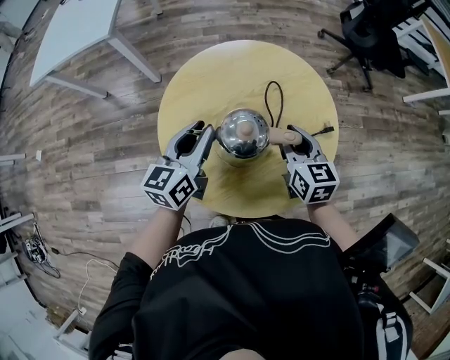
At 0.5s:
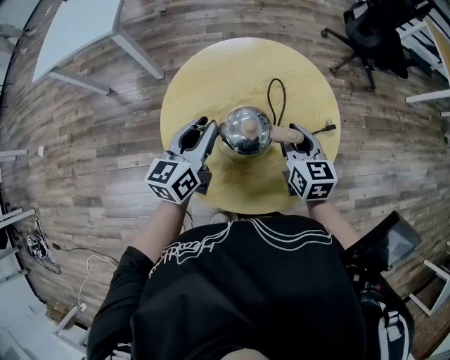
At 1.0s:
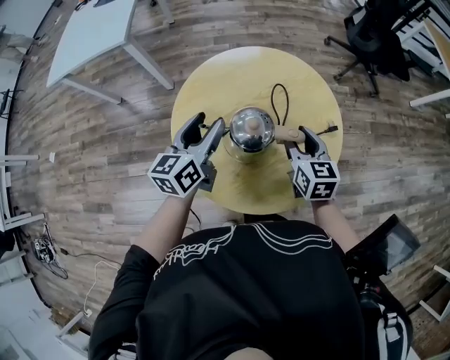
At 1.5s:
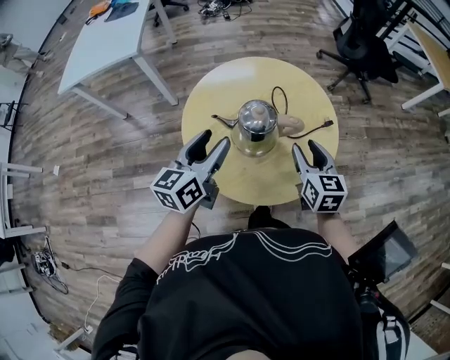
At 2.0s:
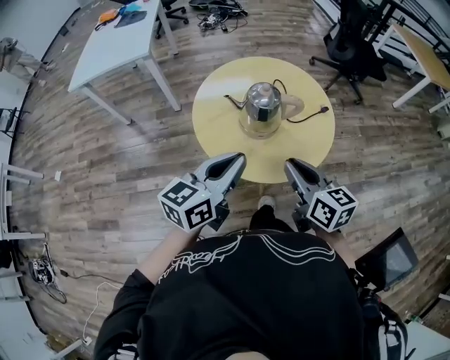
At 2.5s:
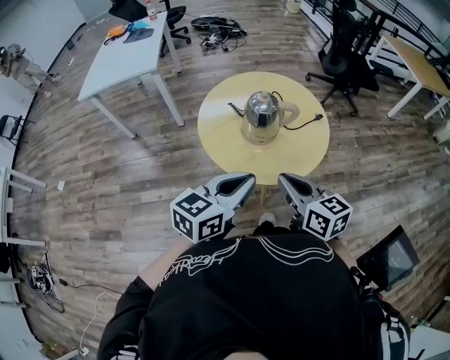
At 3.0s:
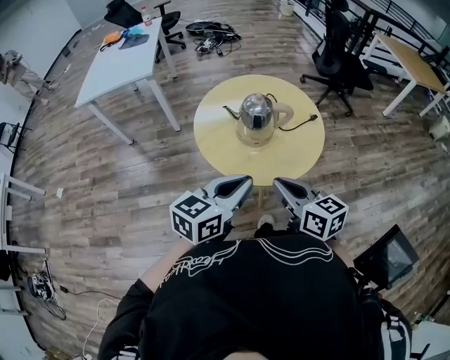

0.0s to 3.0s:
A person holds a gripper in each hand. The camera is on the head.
0.0s to 1.5s: The grippers both shift backward and upward by about 10 cm. The left gripper opens its fingers.
1.5s to 3.0s: The two grippers go approximately 25 cm backward. The right gripper swivels roughly 30 degrees, and closes its fingers; the left gripper changes its angle by approximately 20 degrees, and closes.

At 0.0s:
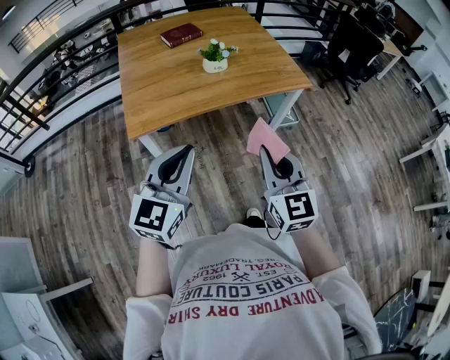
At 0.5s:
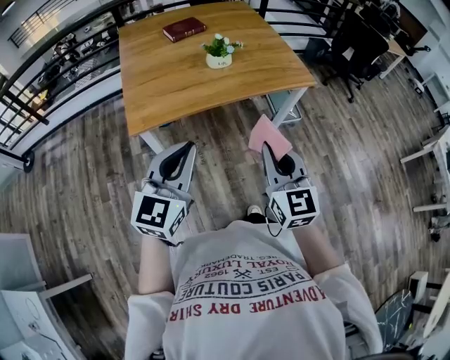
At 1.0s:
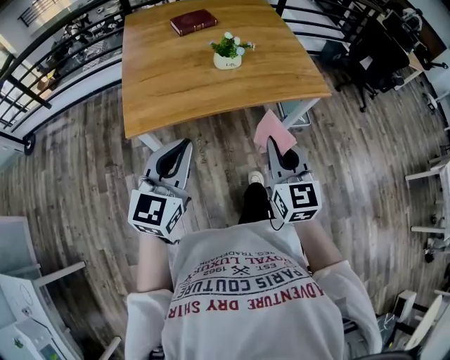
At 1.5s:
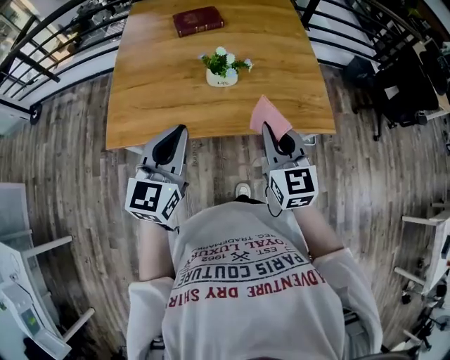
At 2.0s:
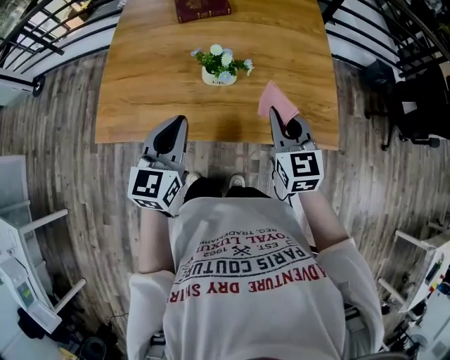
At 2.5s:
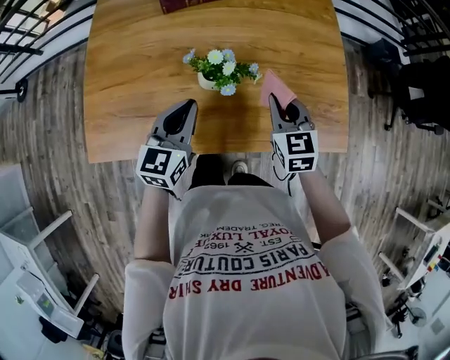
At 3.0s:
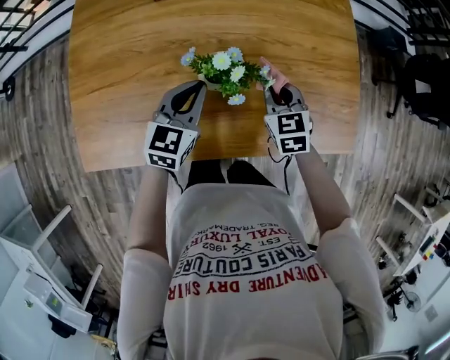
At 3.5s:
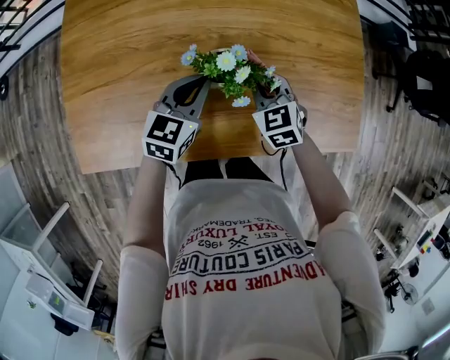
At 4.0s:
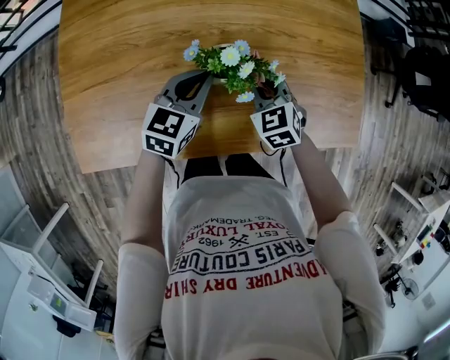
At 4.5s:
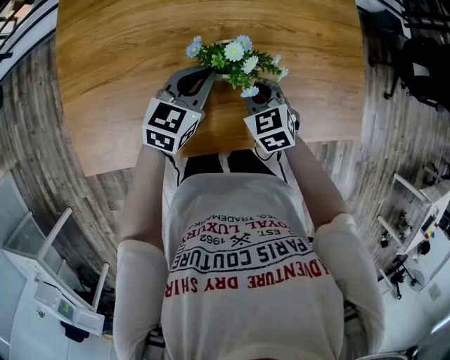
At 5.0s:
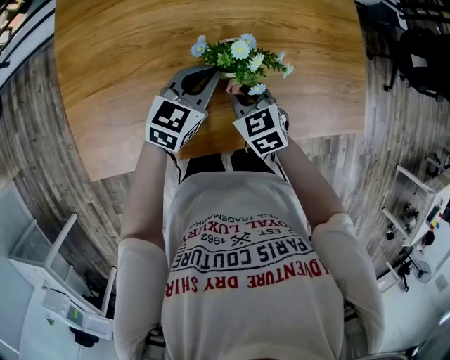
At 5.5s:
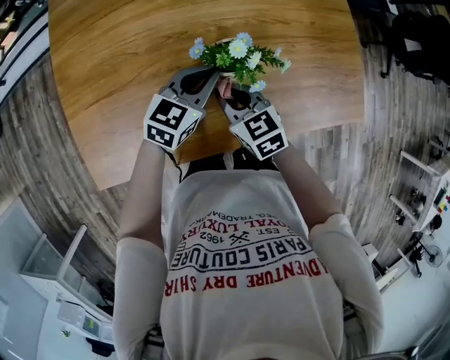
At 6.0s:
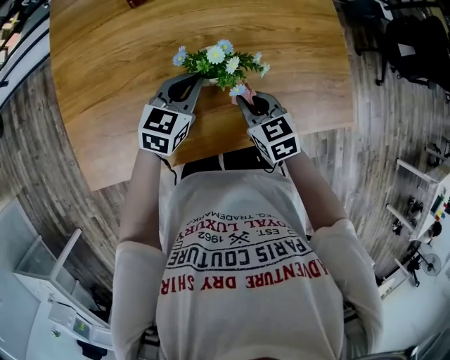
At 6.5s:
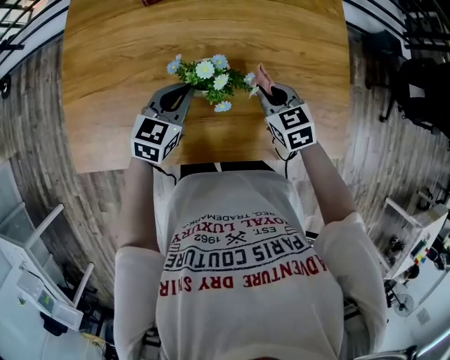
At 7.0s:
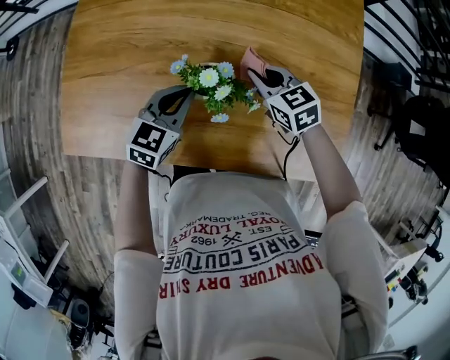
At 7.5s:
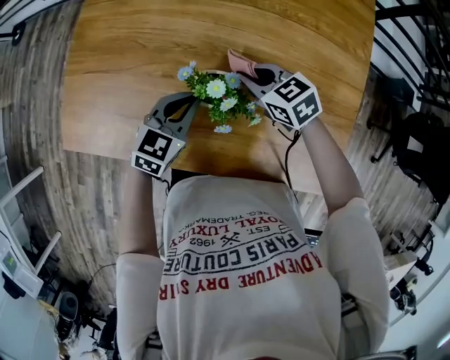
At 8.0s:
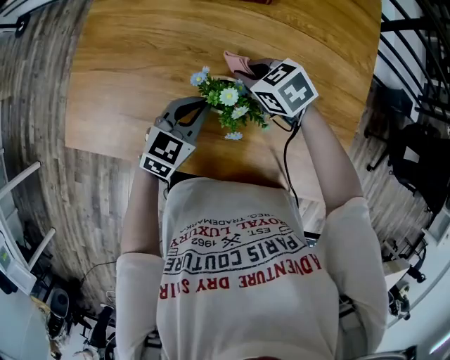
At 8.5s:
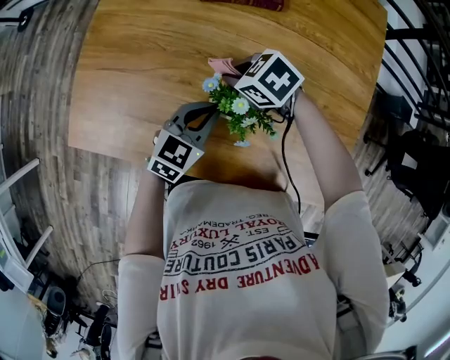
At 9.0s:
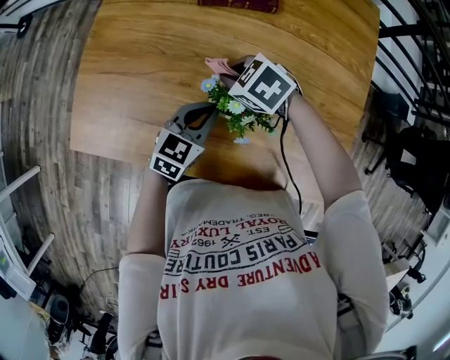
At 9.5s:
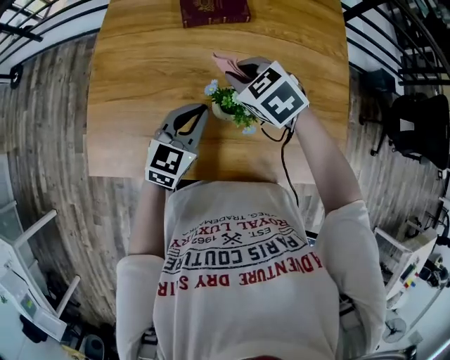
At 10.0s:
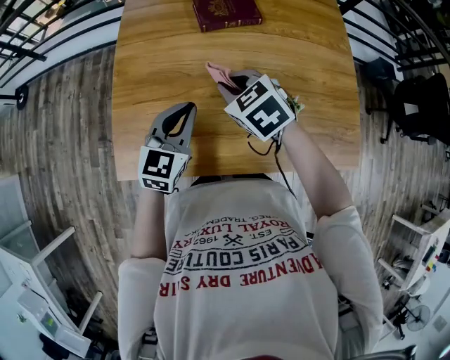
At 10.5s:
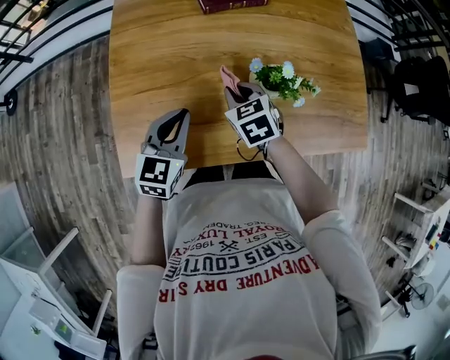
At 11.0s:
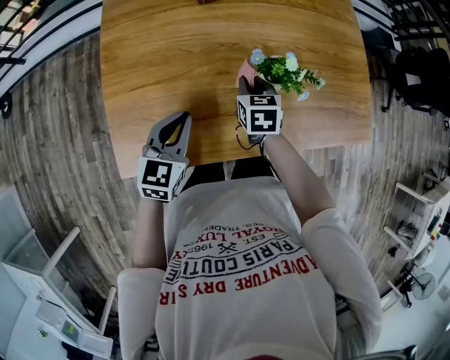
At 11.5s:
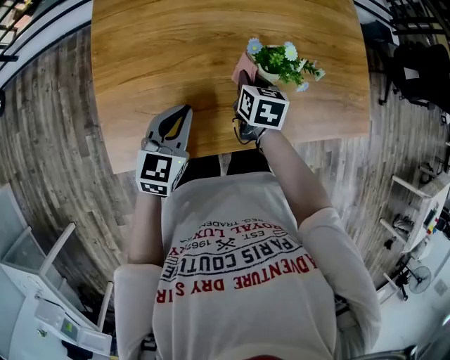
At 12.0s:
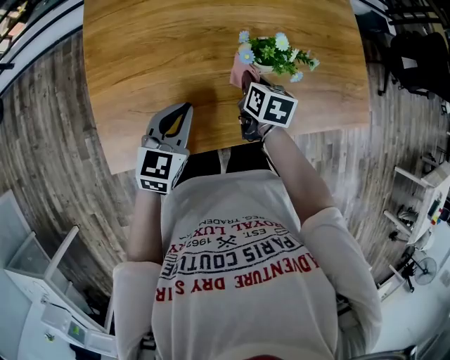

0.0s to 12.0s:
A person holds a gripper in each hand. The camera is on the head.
0.0s to 2.0s: The grippers both shift forward by approximately 40 cm. The left gripper swivels roughly 30 degrees. Meanwhile the right gripper swivels about 20 degrees.
2.0s to 4.0s: The left gripper goes approximately 25 cm forward and downward, and rotates about 30 degrees. The right gripper heads downward, forward and to the left, covering approximately 25 cm, and changes its angle by approximately 30 degrees.
4.0s to 6.0s: The right gripper heads backward, covering approximately 5 cm, and reaches roughly 10 cm to the left, then returns.
6.0s to 8.0s: The right gripper ends up some 15 cm from where it was, and rotates about 50 degrees.
8.0s to 10.0s: The right gripper changes place by approximately 20 cm, and swivels approximately 30 degrees. The left gripper shifts by approximately 20 cm.
10.0s to 12.0s: The left gripper heads downward, covering some 10 cm. The right gripper goes some 15 cm downward, and rotates around the line of its fingers by approximately 60 degrees, clockwise from behind.

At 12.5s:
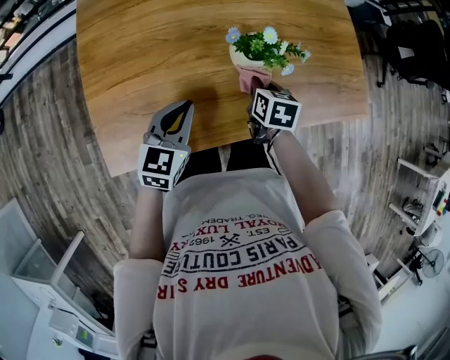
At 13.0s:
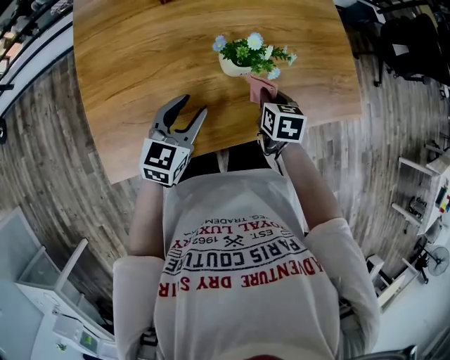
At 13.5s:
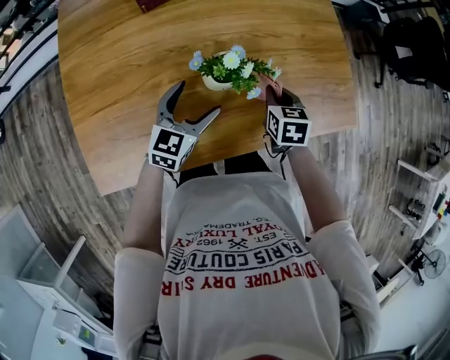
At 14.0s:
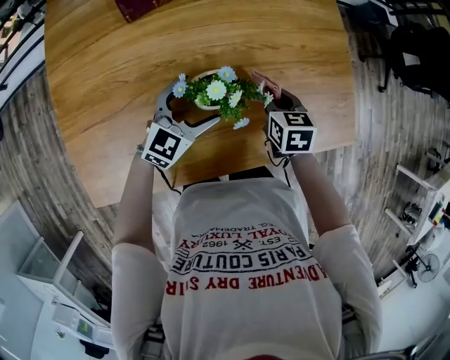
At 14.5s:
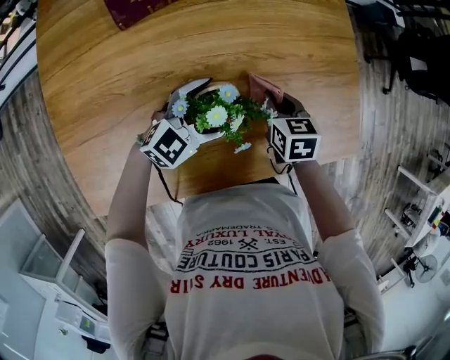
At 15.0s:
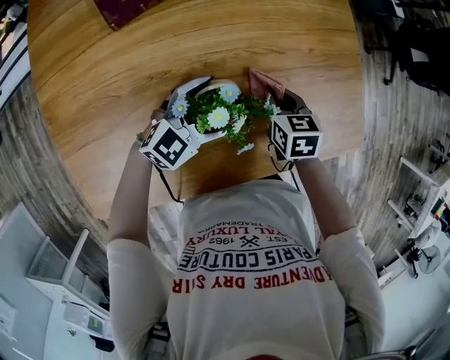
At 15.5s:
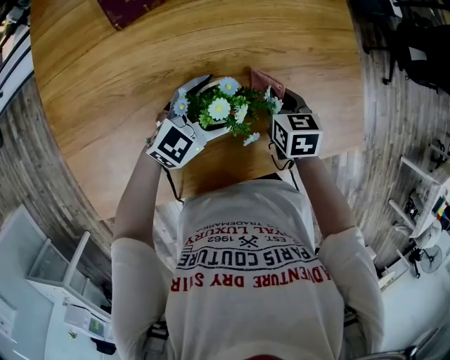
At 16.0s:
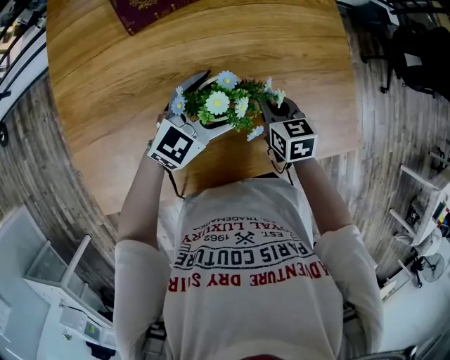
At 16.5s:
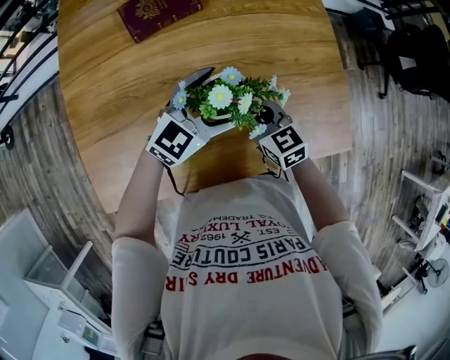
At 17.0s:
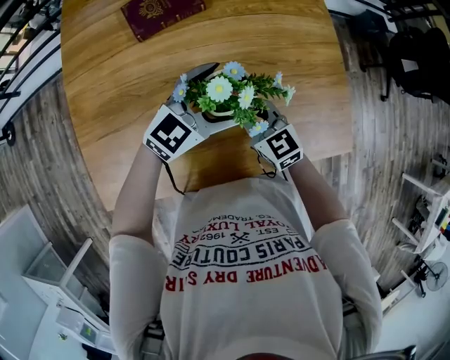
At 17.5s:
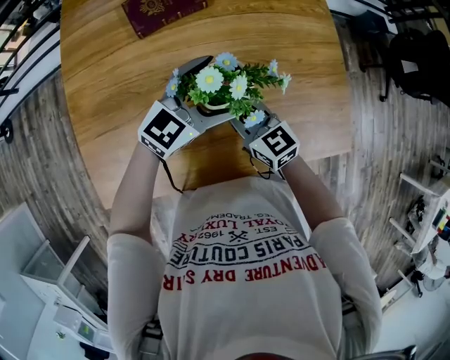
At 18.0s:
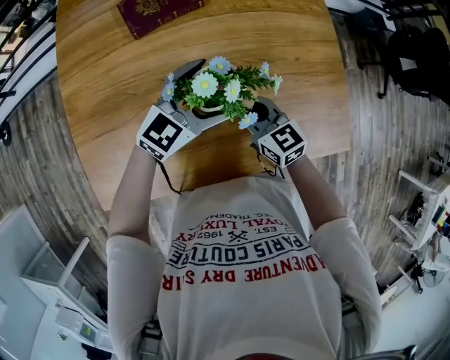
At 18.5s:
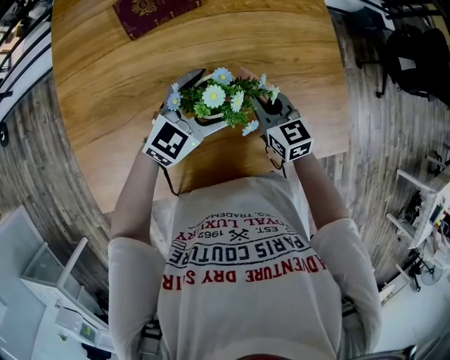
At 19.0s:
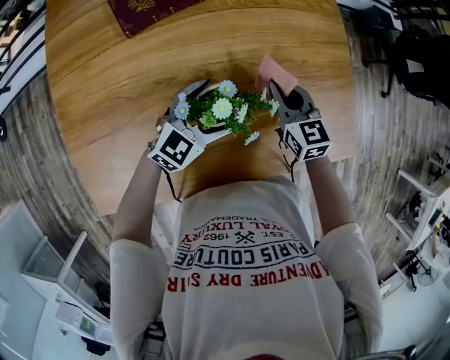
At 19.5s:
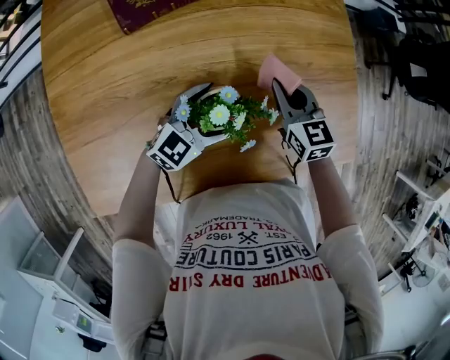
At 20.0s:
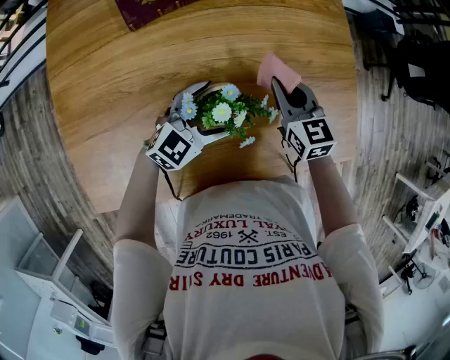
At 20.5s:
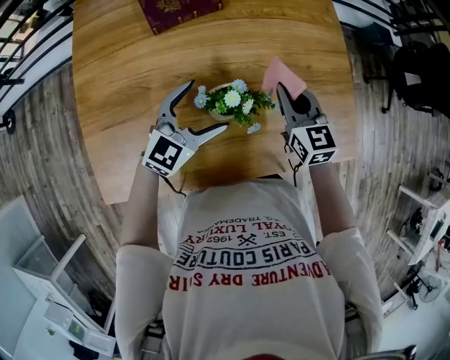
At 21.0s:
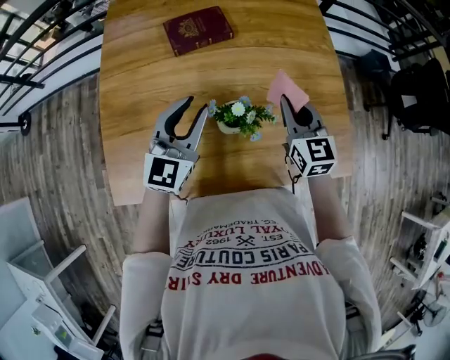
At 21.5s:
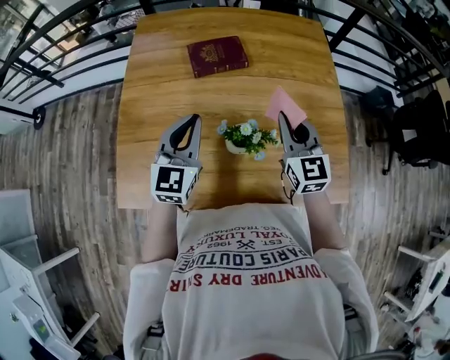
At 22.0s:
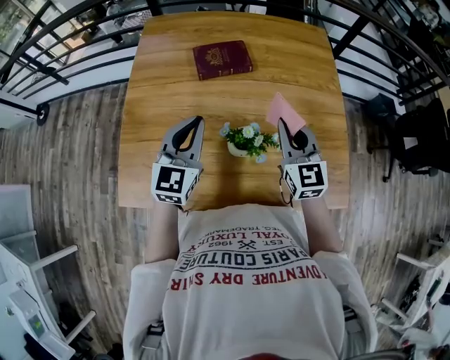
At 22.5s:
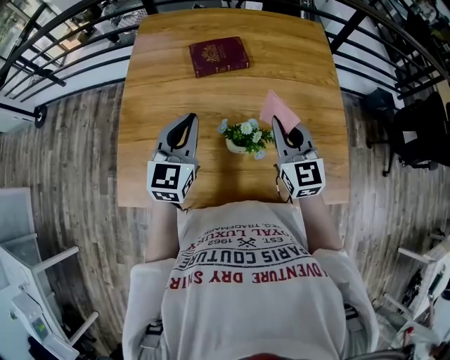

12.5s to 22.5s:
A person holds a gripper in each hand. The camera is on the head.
12.5s to 14.5s: The left gripper moves forward and to the right, approximately 20 cm, rotates approximately 40 degrees, and opens its fingers. The right gripper moves forward and to the right, approximately 15 cm.
14.5s to 16.5s: The right gripper moves upward, to the left and backward, approximately 10 cm, and turns by about 30 degrees, while the left gripper goes some 10 cm upward.
18.5s to 20.5s: The left gripper travels to the left by roughly 5 cm, and moves roughly 5 cm downward and comes back; the right gripper goes some 5 cm upward.
20.5s to 22.5s: Both grippers move upward and to the left, about 15 cm. The left gripper swivels some 40 degrees, and closes.

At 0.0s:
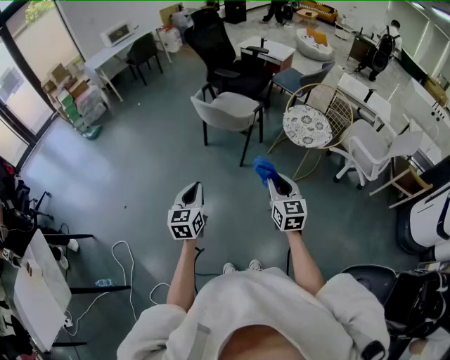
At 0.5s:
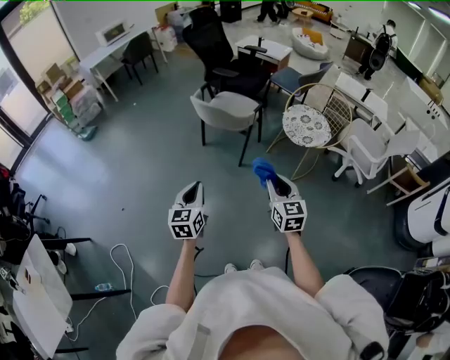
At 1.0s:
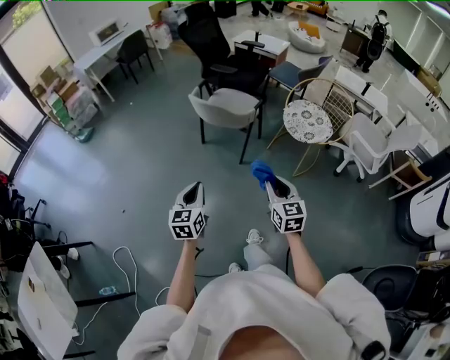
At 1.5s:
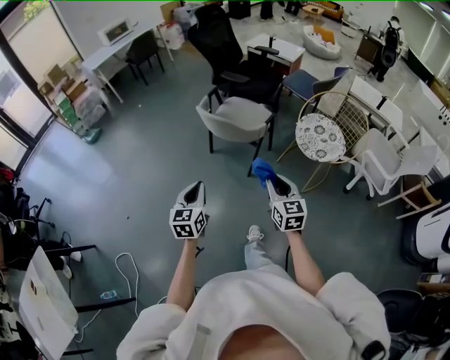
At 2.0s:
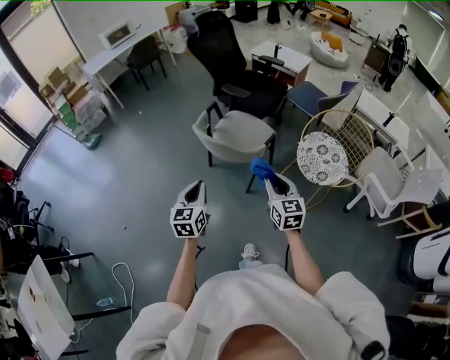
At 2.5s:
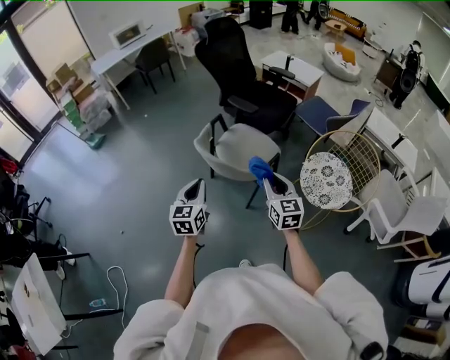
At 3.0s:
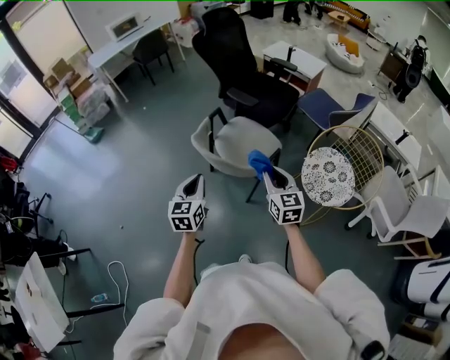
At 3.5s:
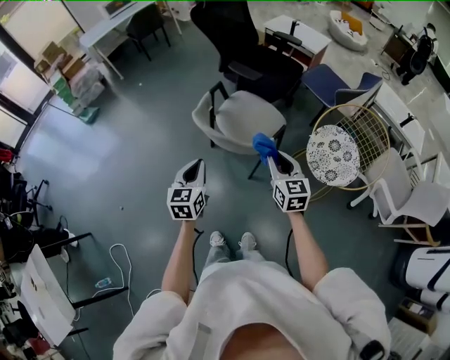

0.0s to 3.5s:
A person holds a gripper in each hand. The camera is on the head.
0.0s to 2.0s: The grippers both shift forward by some 30 cm.
2.0s to 3.5s: Both grippers move forward, some 15 cm.
